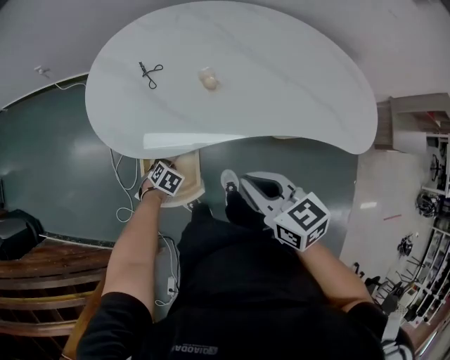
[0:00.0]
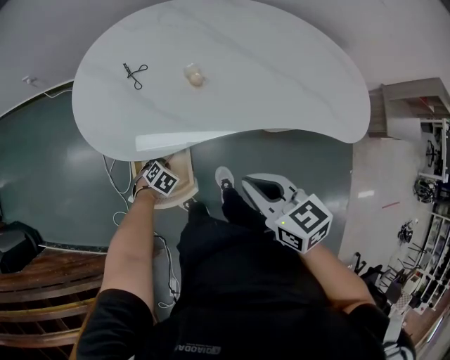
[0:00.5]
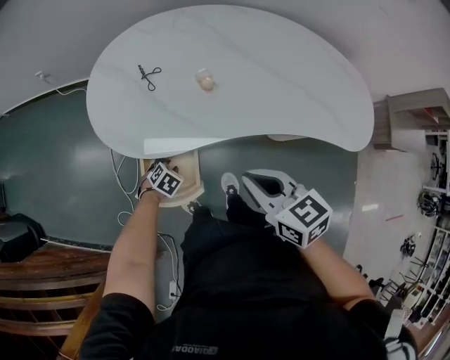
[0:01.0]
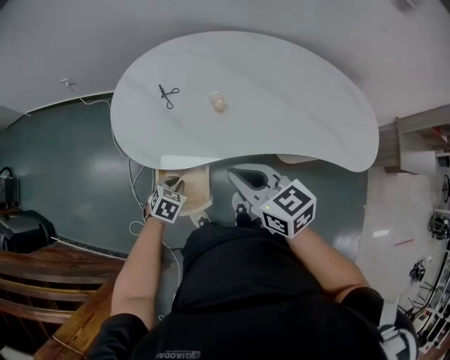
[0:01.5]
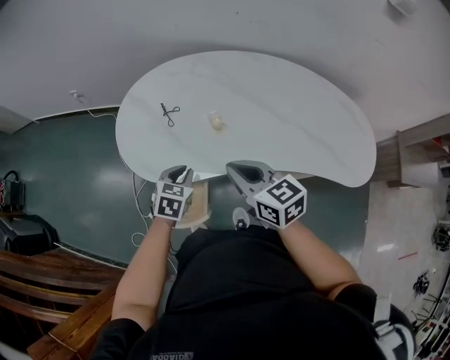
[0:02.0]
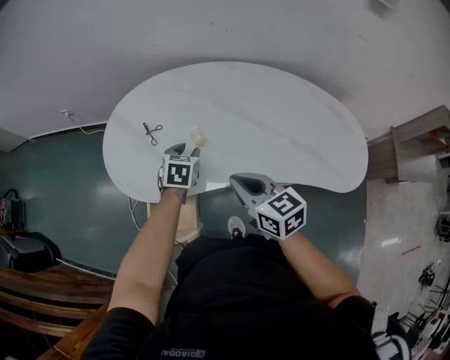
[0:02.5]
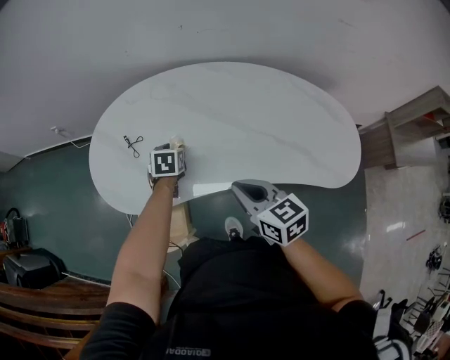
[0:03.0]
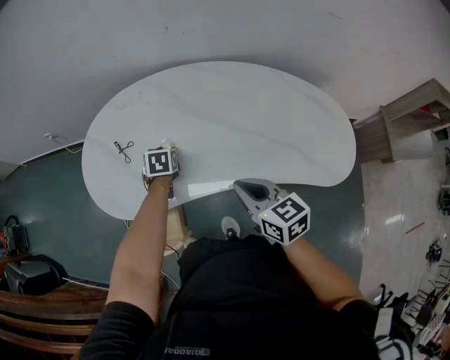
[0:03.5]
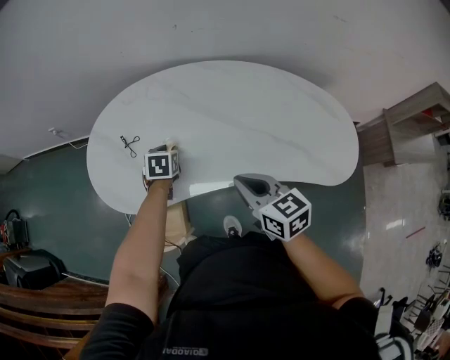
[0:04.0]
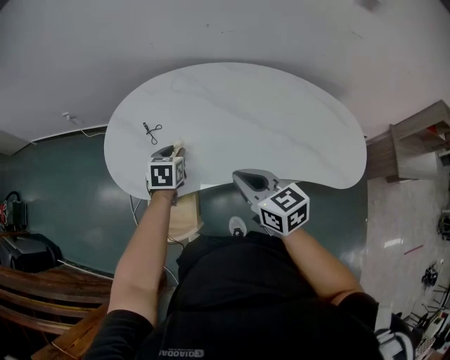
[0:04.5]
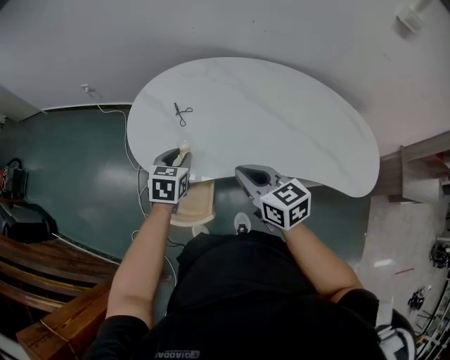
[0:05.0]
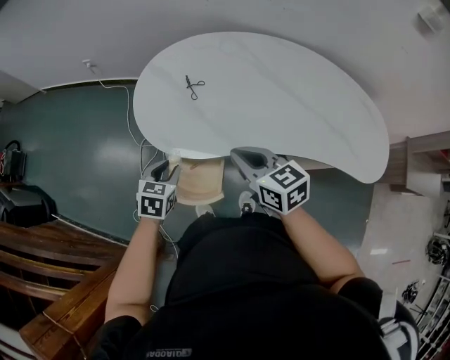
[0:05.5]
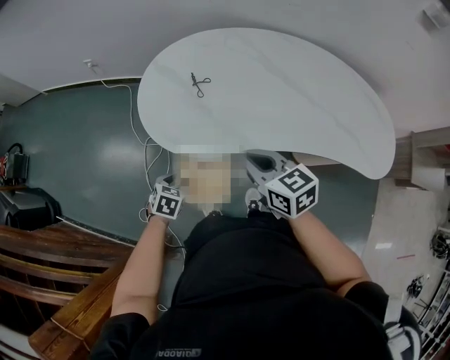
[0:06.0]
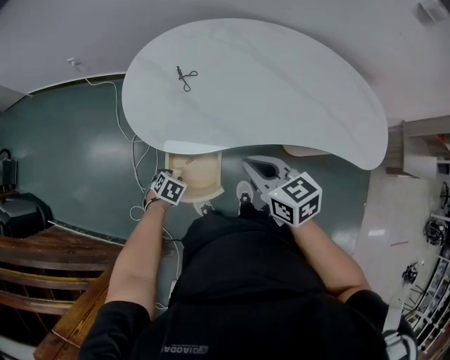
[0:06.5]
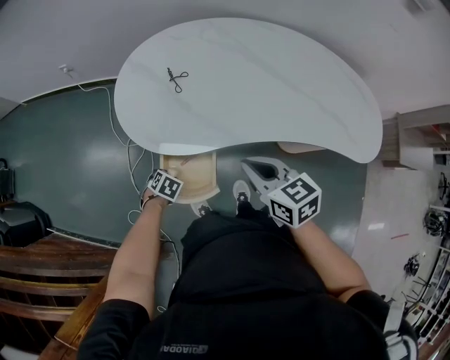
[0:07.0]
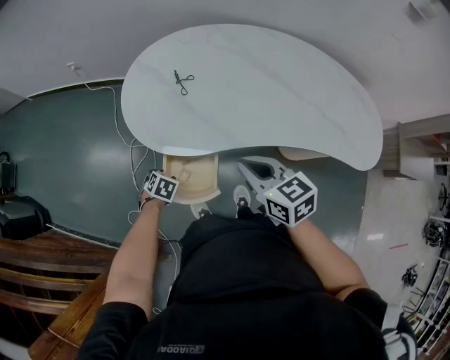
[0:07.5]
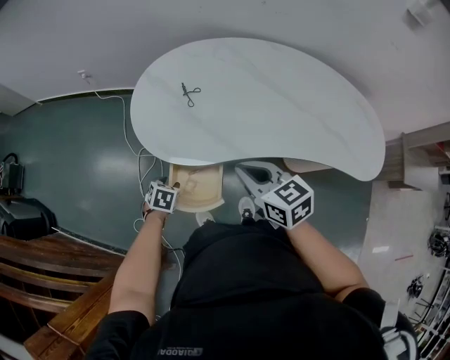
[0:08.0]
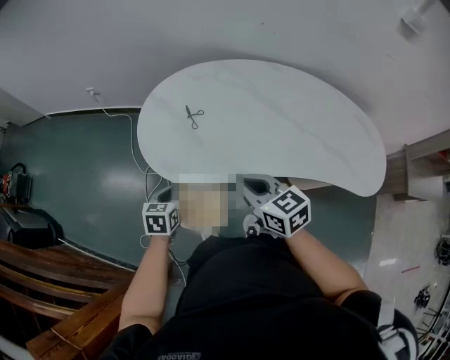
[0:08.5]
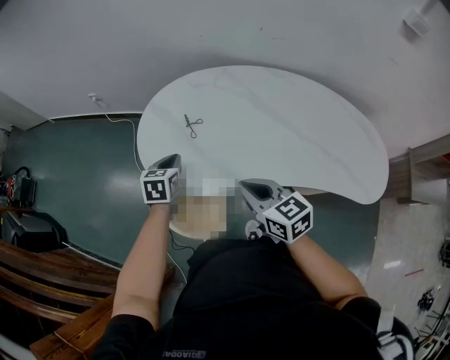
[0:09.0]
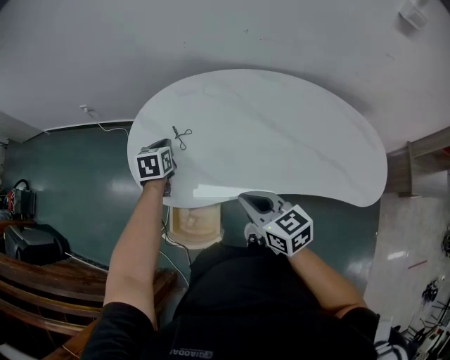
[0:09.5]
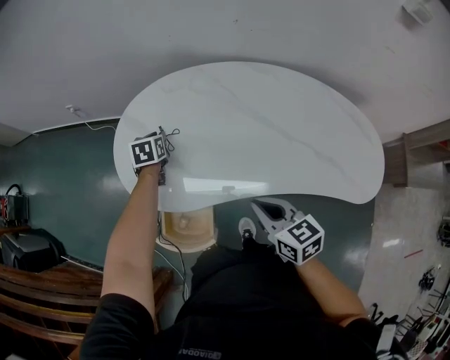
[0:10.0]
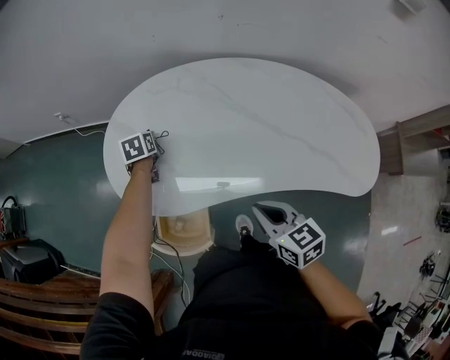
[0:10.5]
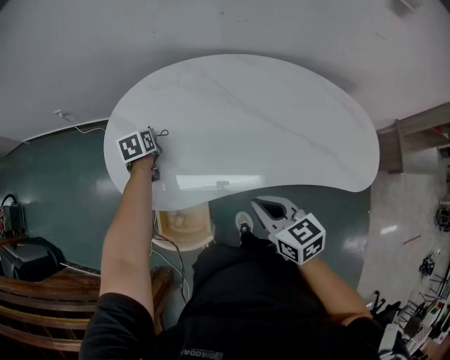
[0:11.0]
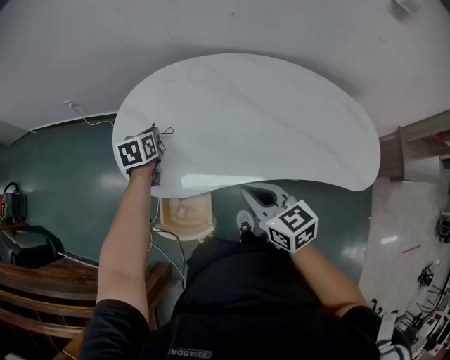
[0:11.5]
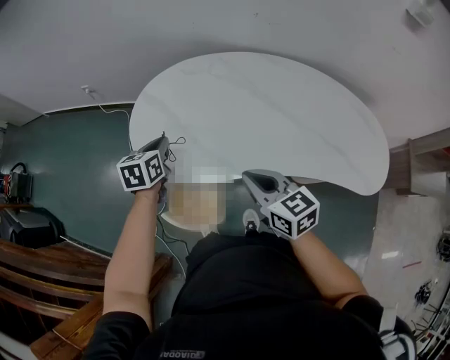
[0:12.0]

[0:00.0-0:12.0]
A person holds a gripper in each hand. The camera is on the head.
0:00.0 to 0:02.0: The right gripper shifts by roughly 10 cm. The left gripper goes some 25 cm upward, and changes its angle by roughly 30 degrees.
0:02.0 to 0:04.0: The right gripper shifts approximately 15 cm to the right, while the left gripper travels forward and to the right by roughly 20 cm.
0:04.0 to 0:06.0: The left gripper shifts roughly 35 cm to the left and backward; the right gripper moves to the left, approximately 25 cm.
0:06.0 to 0:08.0: The left gripper reaches roughly 10 cm downward, then returns.
0:08.0 to 0:10.0: The right gripper travels to the right by about 10 cm. The left gripper moves forward and to the right, about 35 cm, rotates about 30 degrees, and closes.
0:10.0 to 0:12.0: The right gripper is displaced to the left by approximately 5 cm. Meanwhile the left gripper travels backward and upward by about 15 cm.

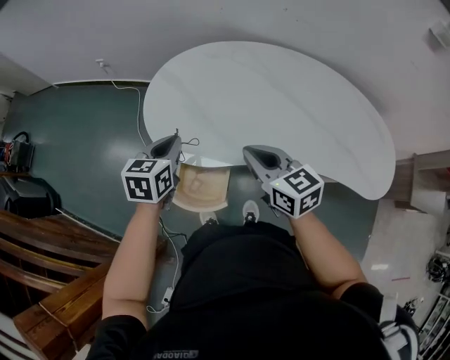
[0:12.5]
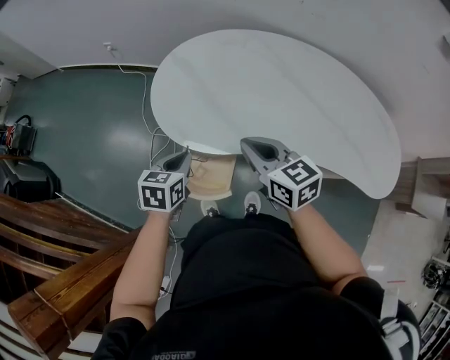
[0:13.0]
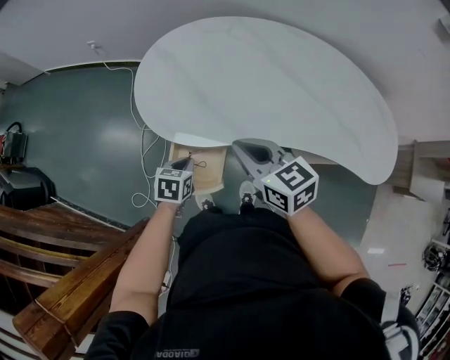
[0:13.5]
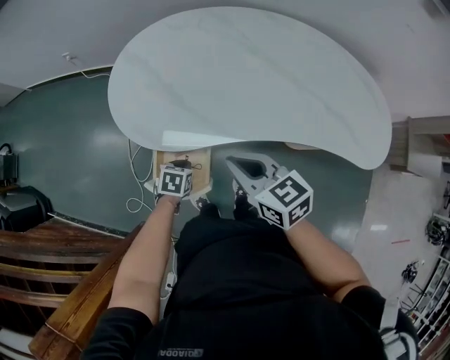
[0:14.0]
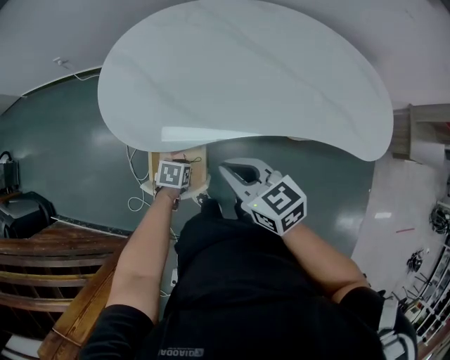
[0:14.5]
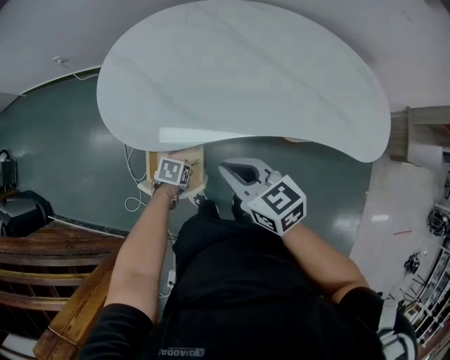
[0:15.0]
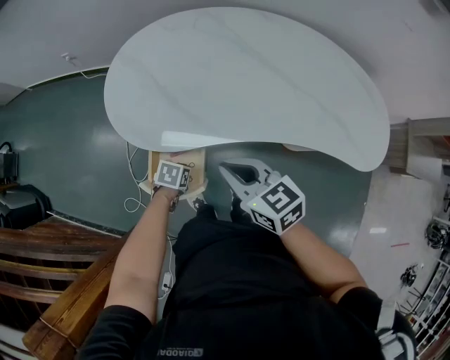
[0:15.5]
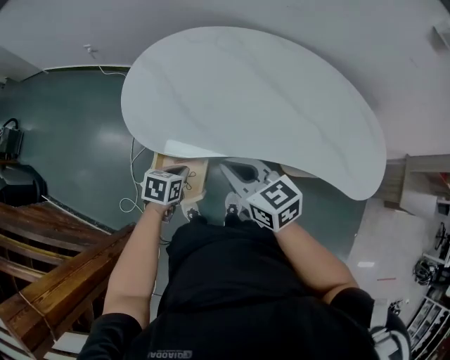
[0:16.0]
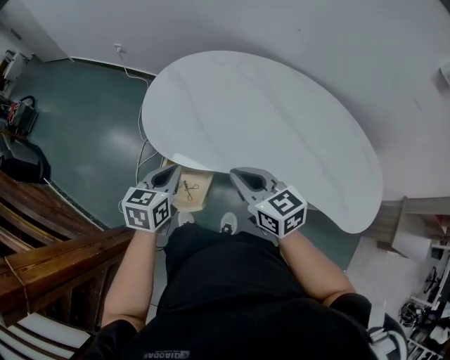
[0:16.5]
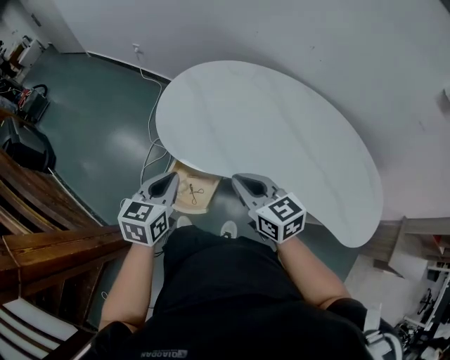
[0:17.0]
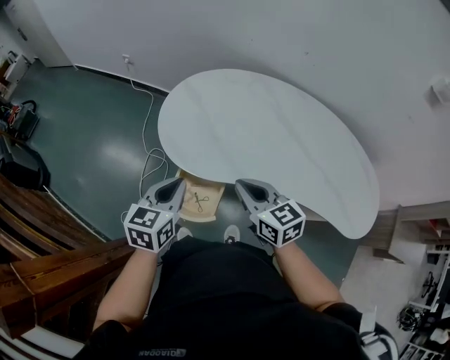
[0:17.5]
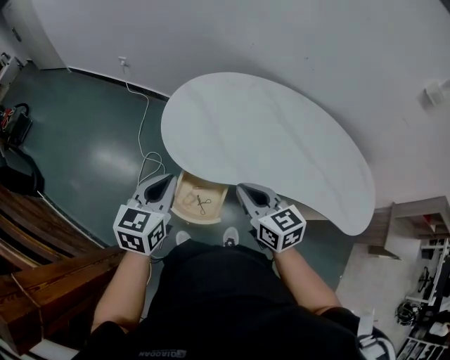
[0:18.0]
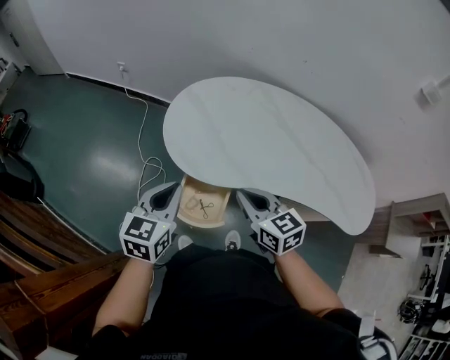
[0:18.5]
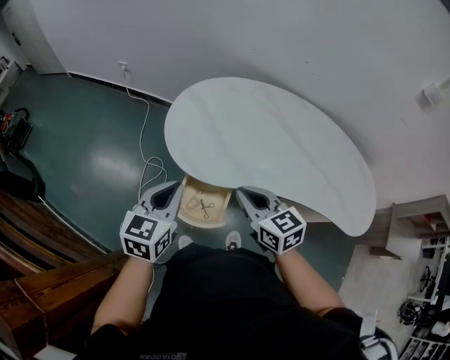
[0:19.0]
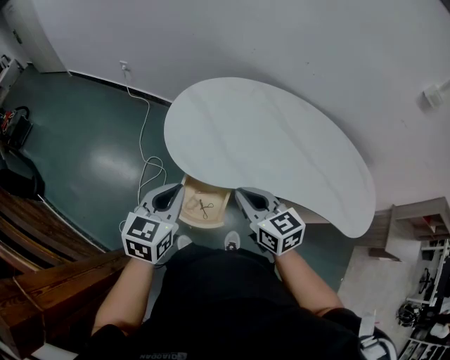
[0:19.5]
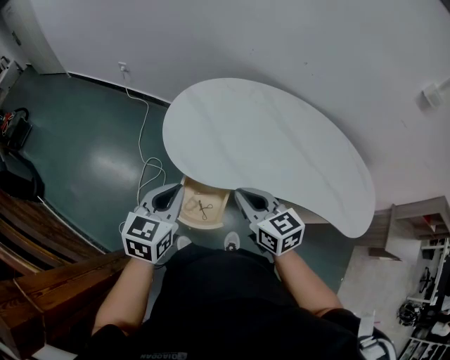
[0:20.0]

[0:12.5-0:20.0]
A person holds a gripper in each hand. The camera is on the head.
0:12.5 to 0:14.5: The right gripper goes about 10 cm backward and downward, while the left gripper travels downward by some 30 cm, and tips its fingers downward by about 30 degrees.
0:14.5 to 0:16.5: The right gripper moves upward, some 5 cm. The left gripper moves upward, about 25 cm, and points its fingers approximately 40 degrees further upward.
0:16.5 to 0:18.0: The right gripper goes about 10 cm to the left, while the left gripper goes some 15 cm to the left and upward.
0:18.0 to 0:20.0: The grippers move only a little.

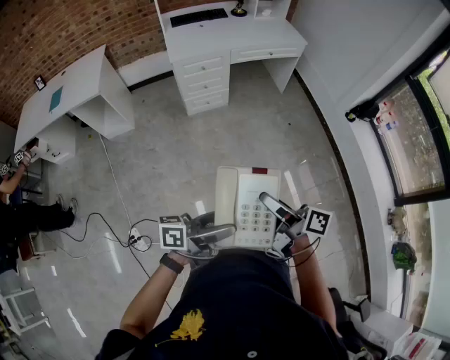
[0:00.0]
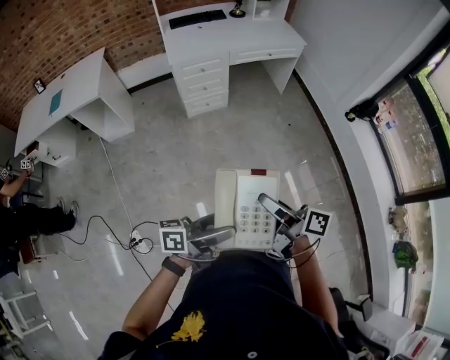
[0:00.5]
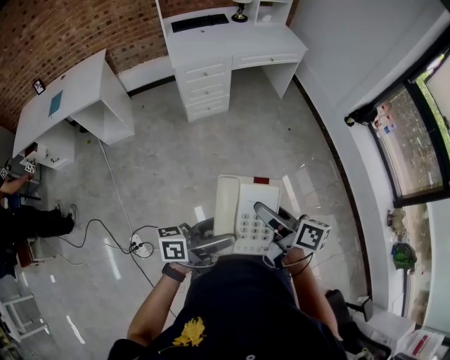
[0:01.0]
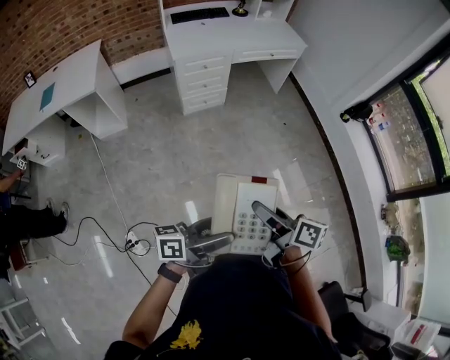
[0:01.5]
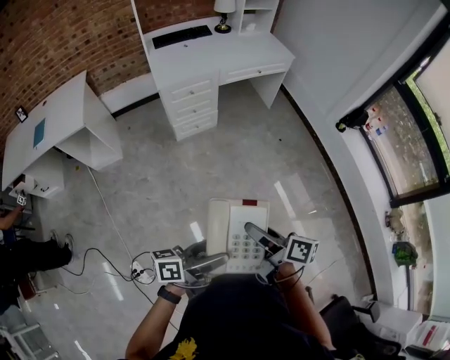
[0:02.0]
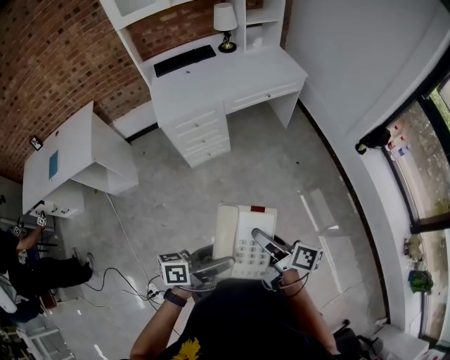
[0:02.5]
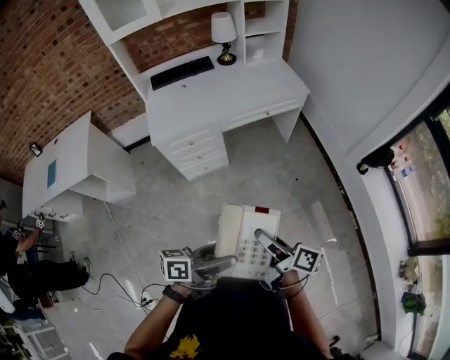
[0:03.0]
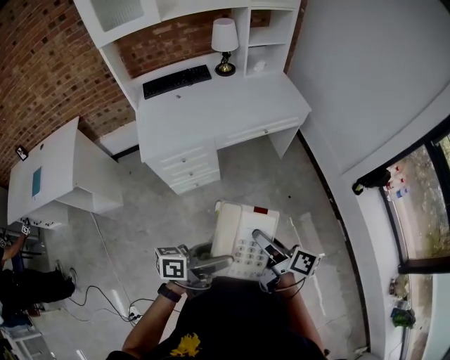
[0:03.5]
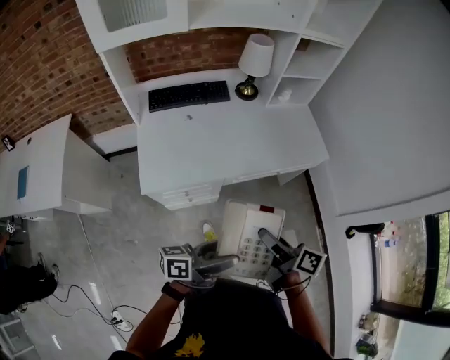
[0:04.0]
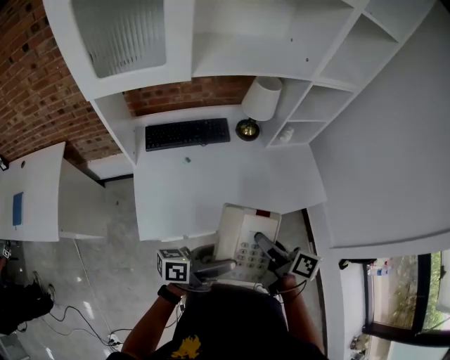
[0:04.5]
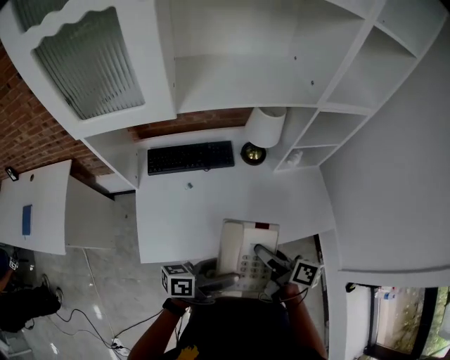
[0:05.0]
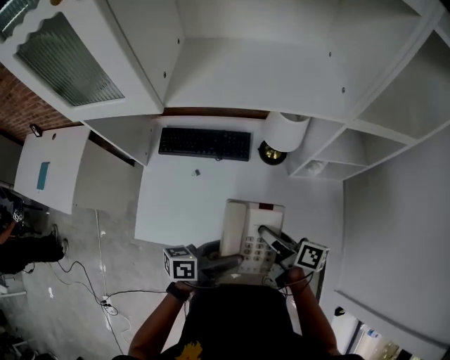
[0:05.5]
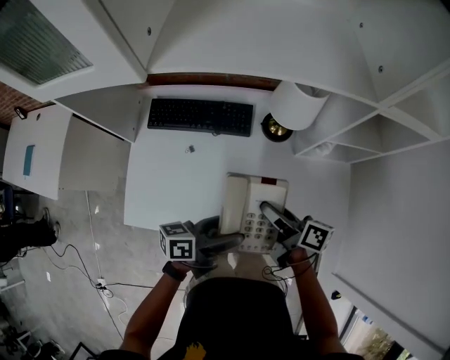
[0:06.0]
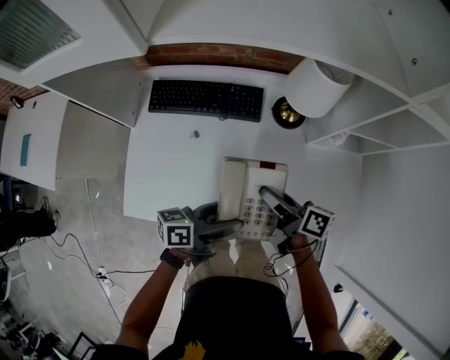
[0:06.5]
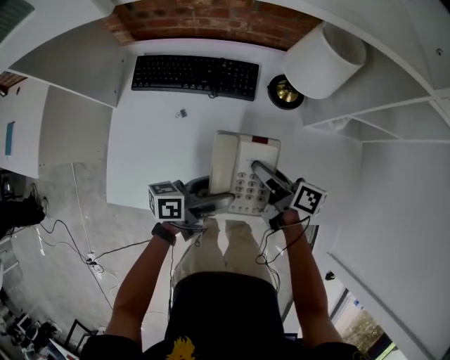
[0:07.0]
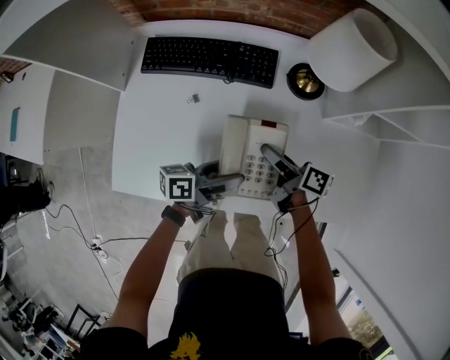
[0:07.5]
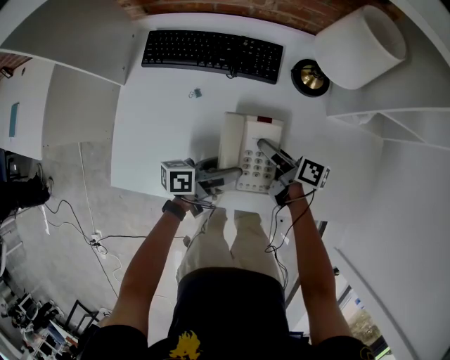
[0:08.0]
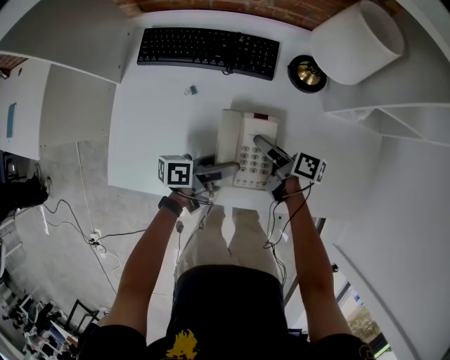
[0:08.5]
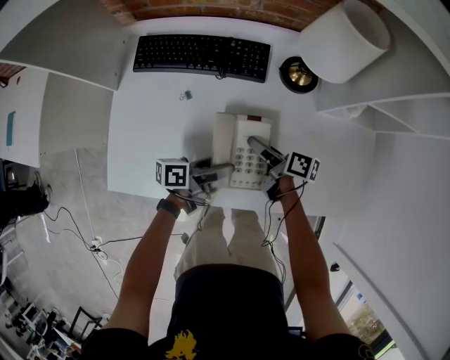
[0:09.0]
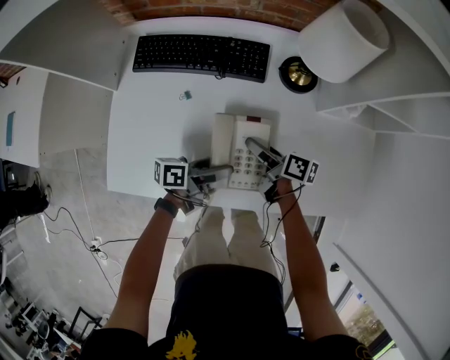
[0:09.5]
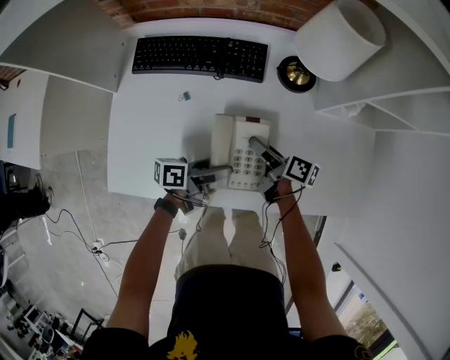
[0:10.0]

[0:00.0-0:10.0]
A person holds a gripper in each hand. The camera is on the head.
0:00.0 to 0:02.0: The right gripper shifts about 10 cm to the left and downward. The left gripper heads to the left, covering about 10 cm.
0:02.0 to 0:04.0: Both grippers are carried forward, approximately 70 cm.
0:04.0 to 0:06.0: Both grippers are carried forward, approximately 40 cm. The right gripper swivels about 20 degrees. Meanwhile the left gripper swivels about 20 degrees.
0:06.0 to 0:08.0: Both grippers travel together downward, approximately 20 cm.
0:08.0 to 0:10.0: There are only small adjustments of the grippers.
